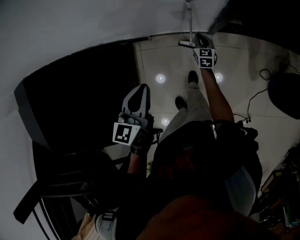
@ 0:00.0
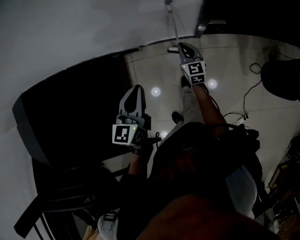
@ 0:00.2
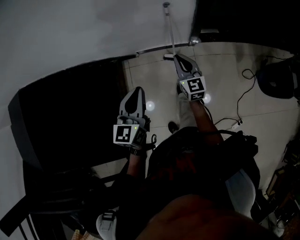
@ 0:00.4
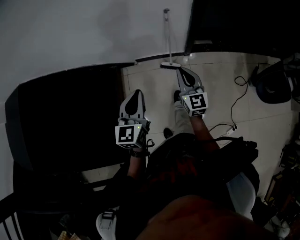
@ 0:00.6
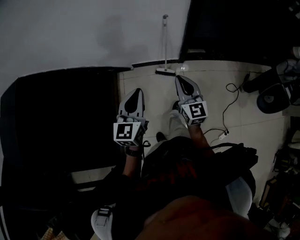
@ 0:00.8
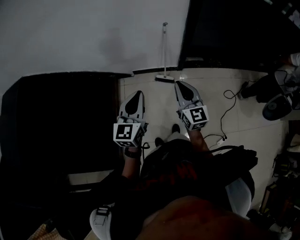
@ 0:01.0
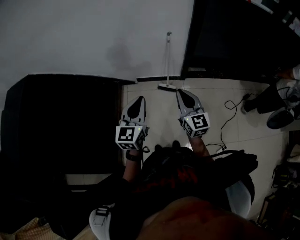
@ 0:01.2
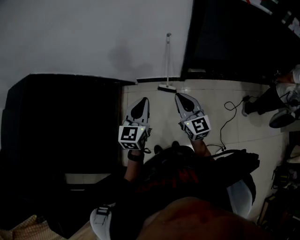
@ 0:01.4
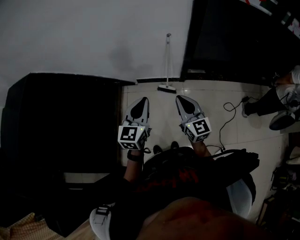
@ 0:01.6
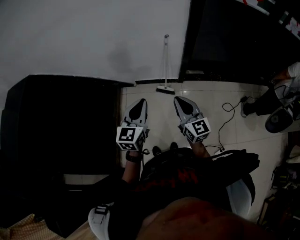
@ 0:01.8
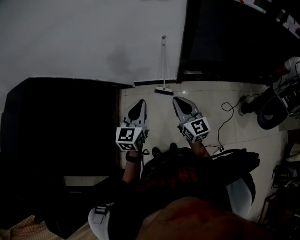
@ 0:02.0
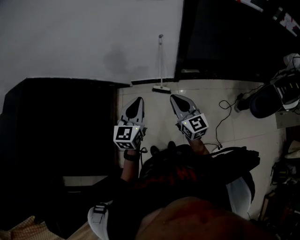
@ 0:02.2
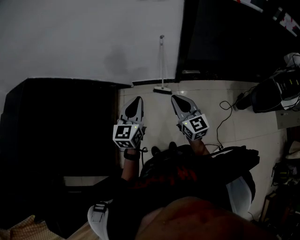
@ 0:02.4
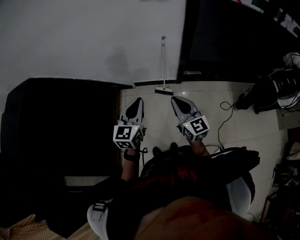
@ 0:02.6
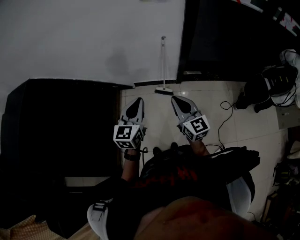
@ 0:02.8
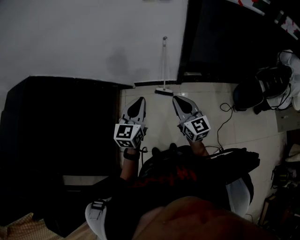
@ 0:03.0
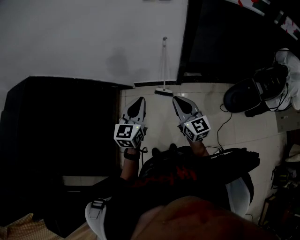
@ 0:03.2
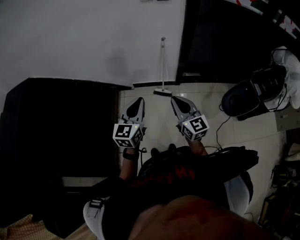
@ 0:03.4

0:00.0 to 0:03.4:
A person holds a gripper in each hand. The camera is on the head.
0:00.0 to 0:01.6: The right gripper heads backward and upward, covering about 70 cm, and tilts its fingers roughly 30 degrees upward, while the left gripper moves backward and upward, roughly 40 cm, and swivels some 20 degrees.
0:01.6 to 0:03.4: The grippers make only small movements.

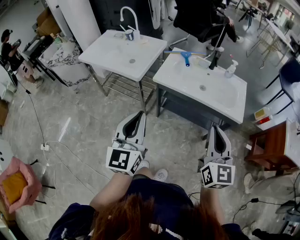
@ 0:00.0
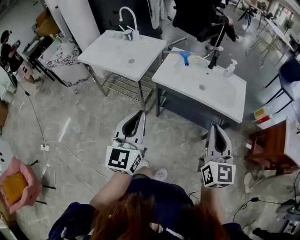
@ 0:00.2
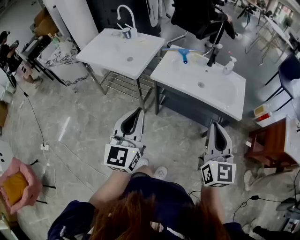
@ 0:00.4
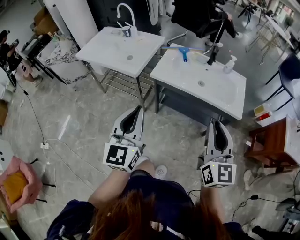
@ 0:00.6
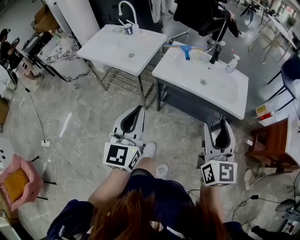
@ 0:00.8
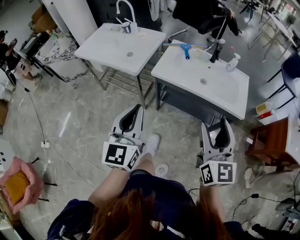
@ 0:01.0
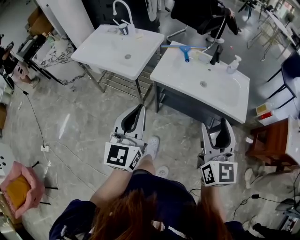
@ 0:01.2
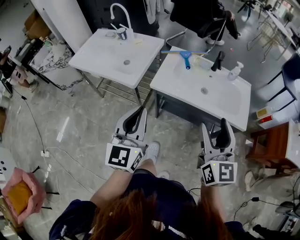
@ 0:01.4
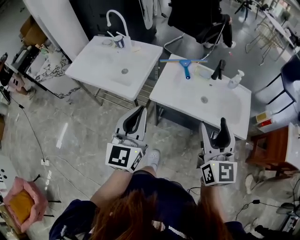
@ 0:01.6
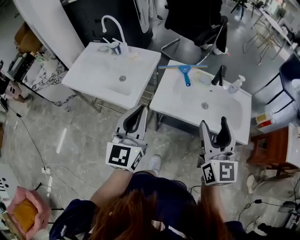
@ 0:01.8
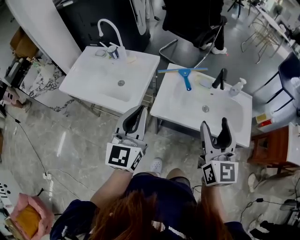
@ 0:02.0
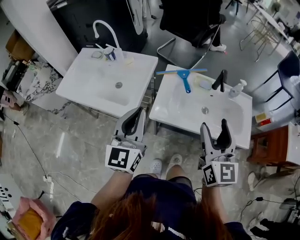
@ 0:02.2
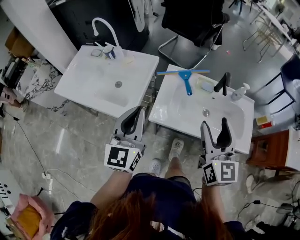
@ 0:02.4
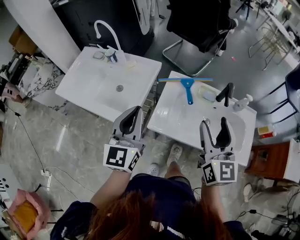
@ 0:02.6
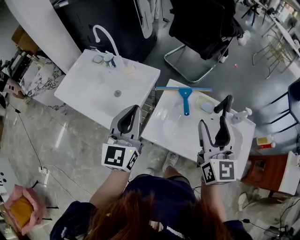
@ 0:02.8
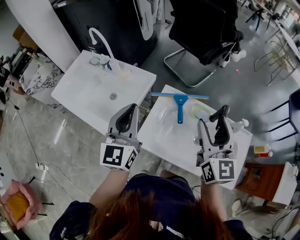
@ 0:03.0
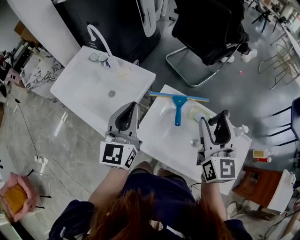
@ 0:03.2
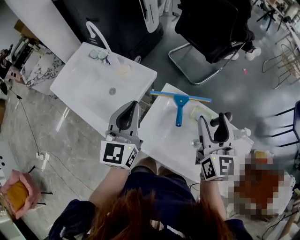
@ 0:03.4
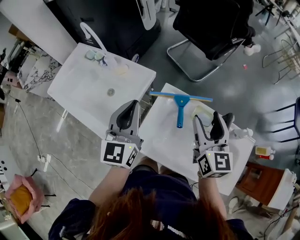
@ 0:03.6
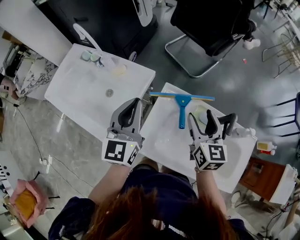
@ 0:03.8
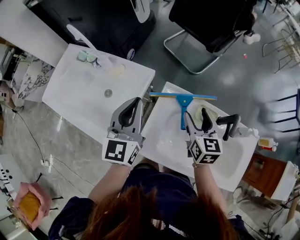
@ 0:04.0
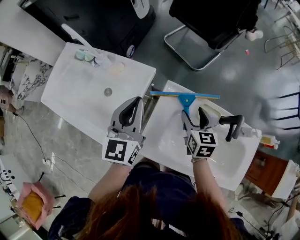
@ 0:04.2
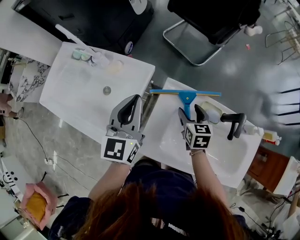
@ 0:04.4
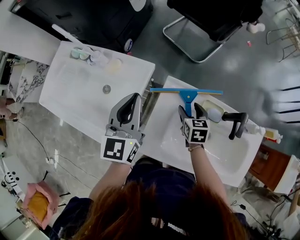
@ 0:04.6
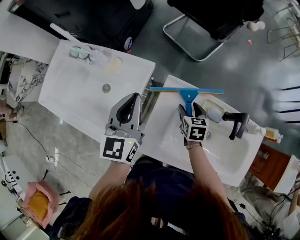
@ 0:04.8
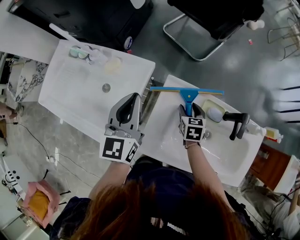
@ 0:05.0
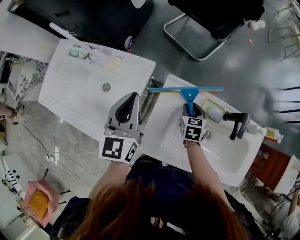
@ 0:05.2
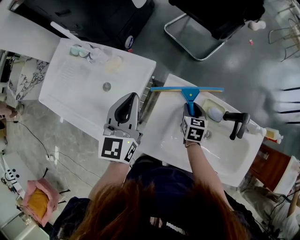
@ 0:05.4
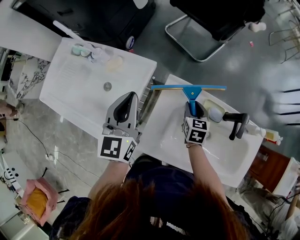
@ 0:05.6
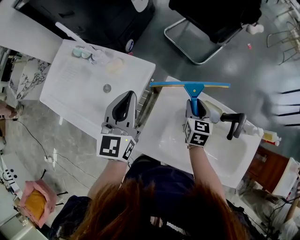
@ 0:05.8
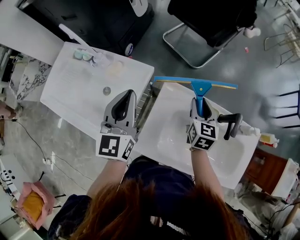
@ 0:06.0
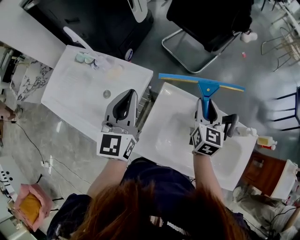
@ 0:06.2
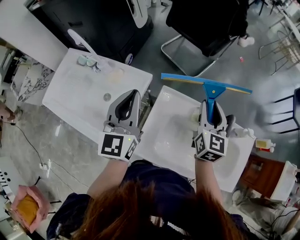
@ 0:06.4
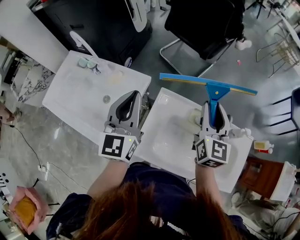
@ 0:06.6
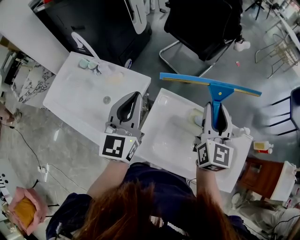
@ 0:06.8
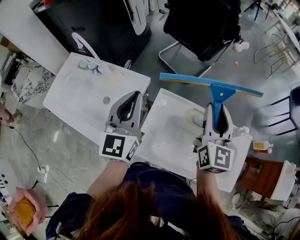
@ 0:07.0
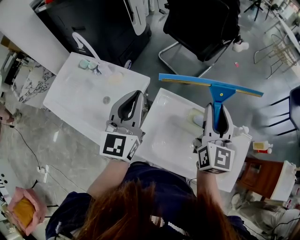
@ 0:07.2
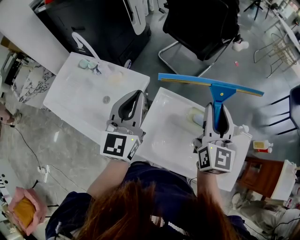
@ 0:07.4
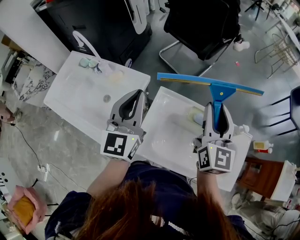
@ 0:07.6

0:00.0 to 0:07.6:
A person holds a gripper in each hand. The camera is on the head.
0:00.0 to 0:01.6: The grippers both shift forward by approximately 20 cm. The right gripper opens up.
0:01.6 to 0:03.0: Both grippers travel together forward, about 35 cm.
0:03.0 to 0:04.6: The left gripper moves forward and downward, roughly 20 cm; the right gripper goes approximately 40 cm downward and forward, and tips its fingers downward by about 40 degrees.
0:04.6 to 0:06.0: The right gripper moves upward, roughly 10 cm, rotates roughly 20 degrees, and closes.
0:06.0 to 0:07.6: The left gripper goes approximately 10 cm upward and to the right. Meanwhile the right gripper is displaced upward by some 20 cm, and changes its angle by some 30 degrees.

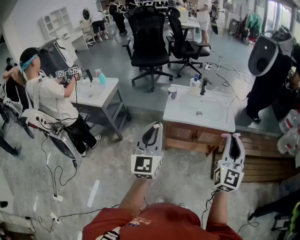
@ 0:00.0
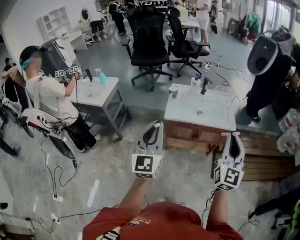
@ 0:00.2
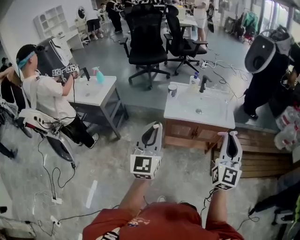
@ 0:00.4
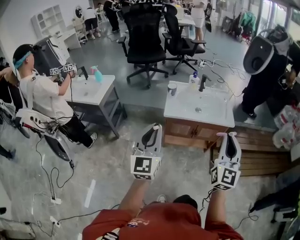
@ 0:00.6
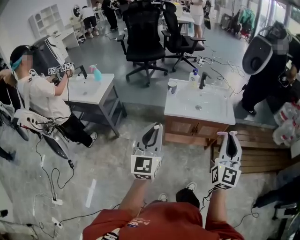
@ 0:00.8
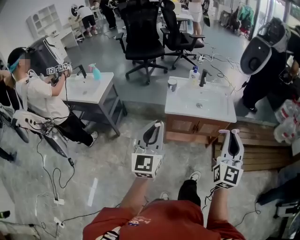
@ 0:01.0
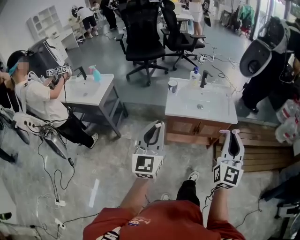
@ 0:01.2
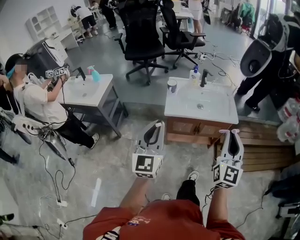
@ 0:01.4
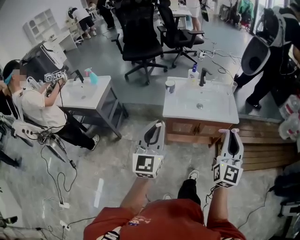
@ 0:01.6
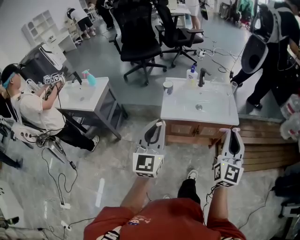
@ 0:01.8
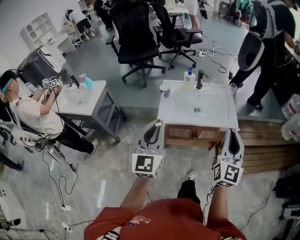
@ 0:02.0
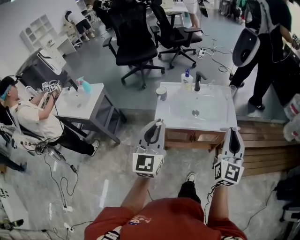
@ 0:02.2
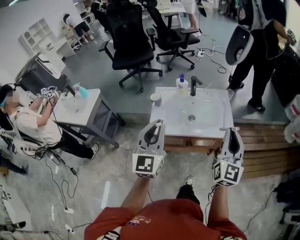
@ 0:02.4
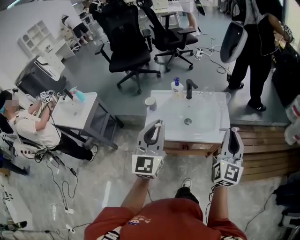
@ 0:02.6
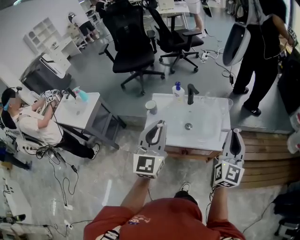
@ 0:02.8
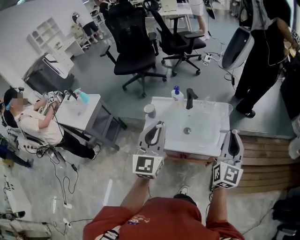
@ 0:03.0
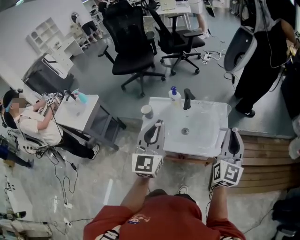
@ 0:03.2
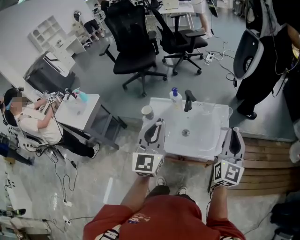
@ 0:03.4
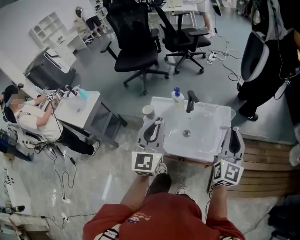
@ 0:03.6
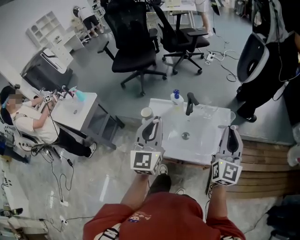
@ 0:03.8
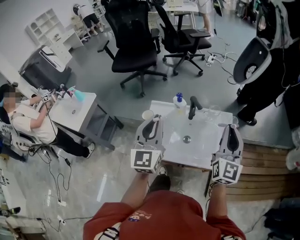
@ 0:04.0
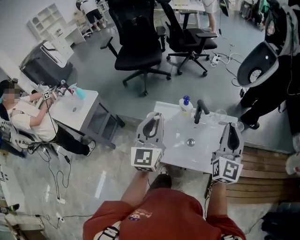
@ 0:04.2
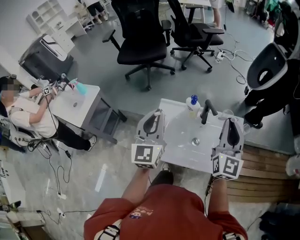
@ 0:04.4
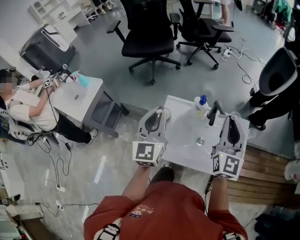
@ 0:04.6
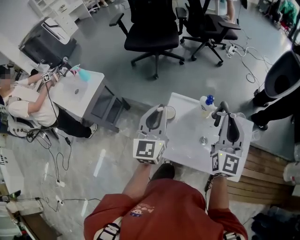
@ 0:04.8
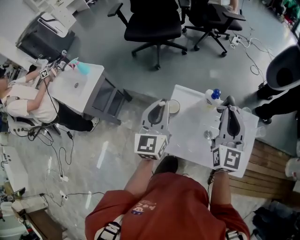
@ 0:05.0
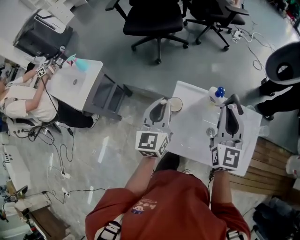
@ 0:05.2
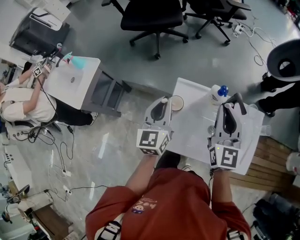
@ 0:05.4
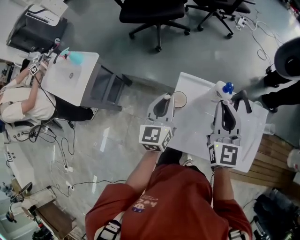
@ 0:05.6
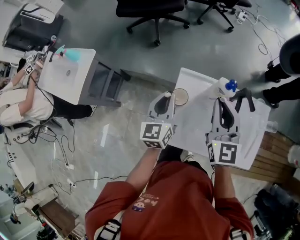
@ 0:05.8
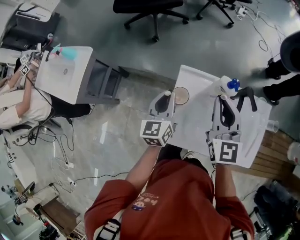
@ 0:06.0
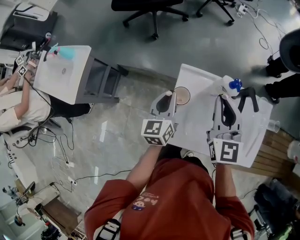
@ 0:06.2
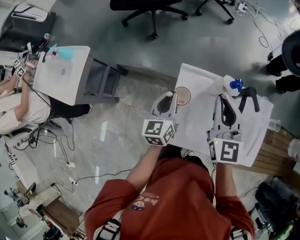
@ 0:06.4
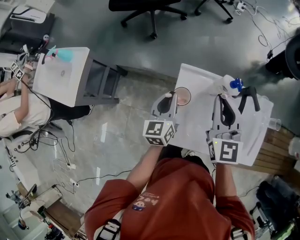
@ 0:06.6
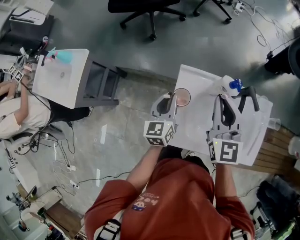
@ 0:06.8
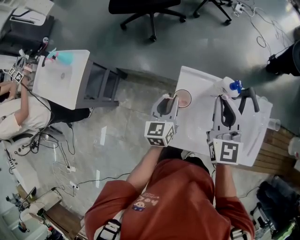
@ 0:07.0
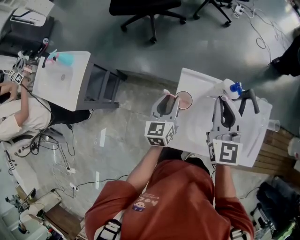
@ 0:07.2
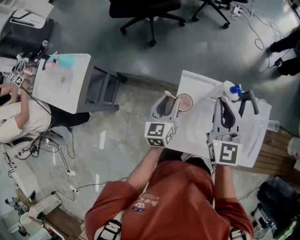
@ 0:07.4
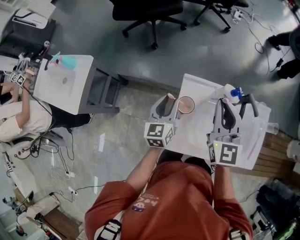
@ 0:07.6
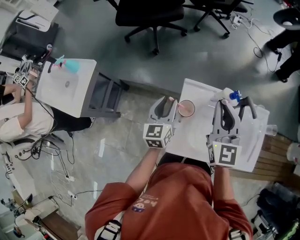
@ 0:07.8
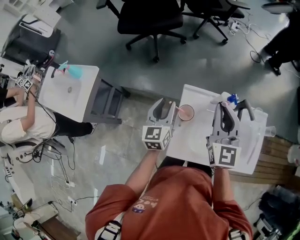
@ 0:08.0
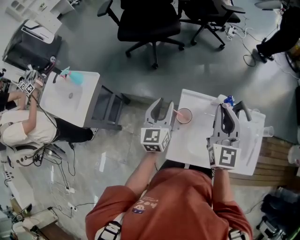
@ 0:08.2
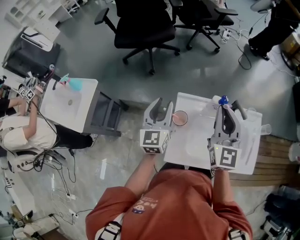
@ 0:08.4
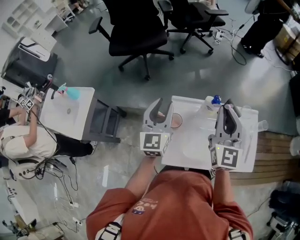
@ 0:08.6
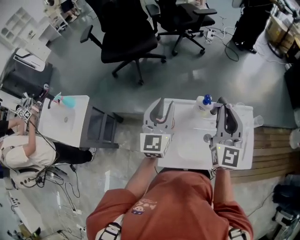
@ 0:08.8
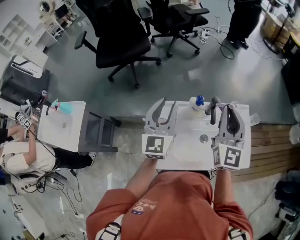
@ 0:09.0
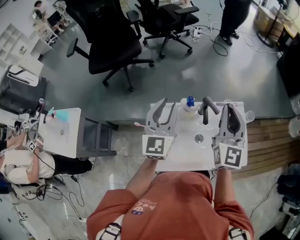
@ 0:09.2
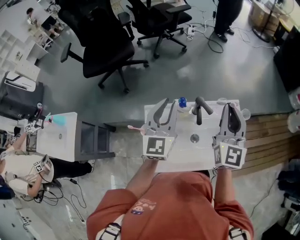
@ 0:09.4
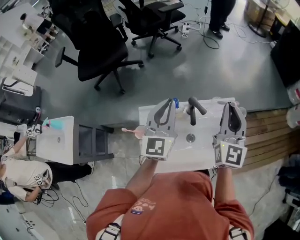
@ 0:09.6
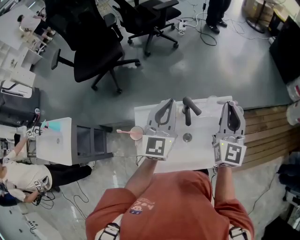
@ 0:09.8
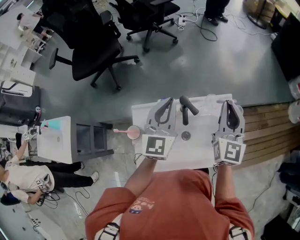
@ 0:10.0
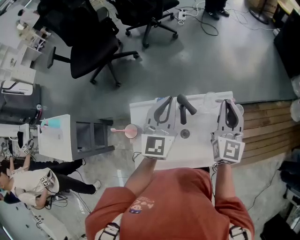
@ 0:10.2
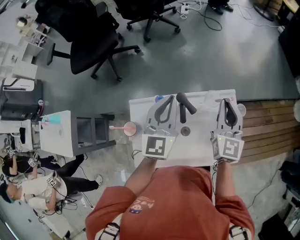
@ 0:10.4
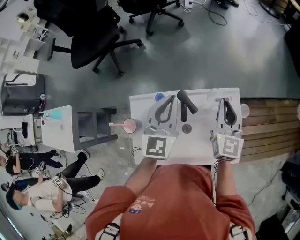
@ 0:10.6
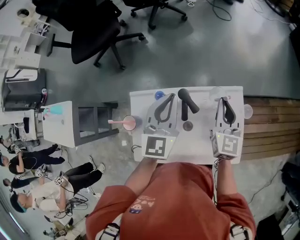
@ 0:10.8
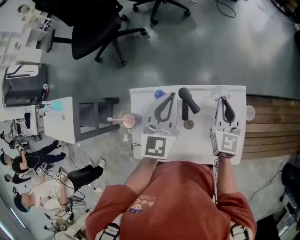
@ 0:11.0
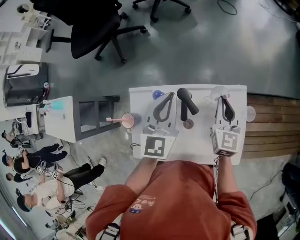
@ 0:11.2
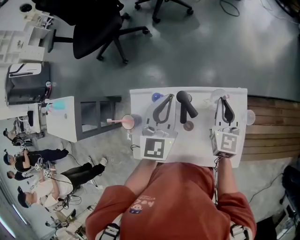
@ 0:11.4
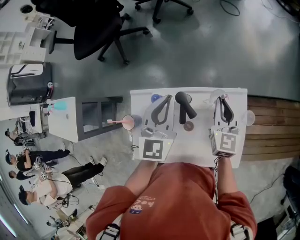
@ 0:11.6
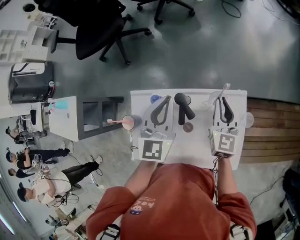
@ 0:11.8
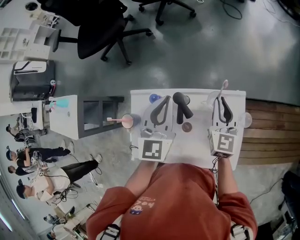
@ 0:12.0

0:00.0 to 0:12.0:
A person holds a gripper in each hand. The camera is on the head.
0:00.0 to 0:01.6: The left gripper goes approximately 5 cm forward; the right gripper is displaced to the left by about 5 cm.
0:01.6 to 0:03.0: Both grippers are carried forward and to the right, approximately 40 cm.
0:03.0 to 0:04.4: The two grippers go approximately 25 cm forward and to the left.
0:04.4 to 0:06.0: The right gripper shifts roughly 35 cm to the left, forward and downward, and rotates approximately 20 degrees. Meanwhile the left gripper goes about 35 cm downward, forward and to the left, and turns by some 30 degrees.
0:06.0 to 0:07.6: The left gripper opens its fingers.
0:07.6 to 0:09.0: The left gripper shifts about 25 cm upward and to the right, and changes its angle by roughly 30 degrees. The right gripper shifts approximately 20 cm to the right and upward, and changes its angle by about 20 degrees.
0:09.0 to 0:10.4: The right gripper heads to the right, forward and downward, covering some 25 cm, while the left gripper shifts about 25 cm to the right and forward, and closes its fingers.
0:10.4 to 0:12.0: The right gripper travels downward and forward by about 10 cm. Meanwhile the left gripper moves downward, some 5 cm.
